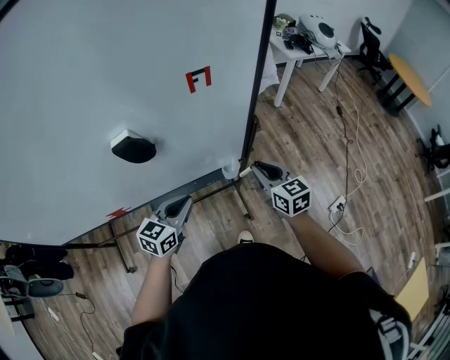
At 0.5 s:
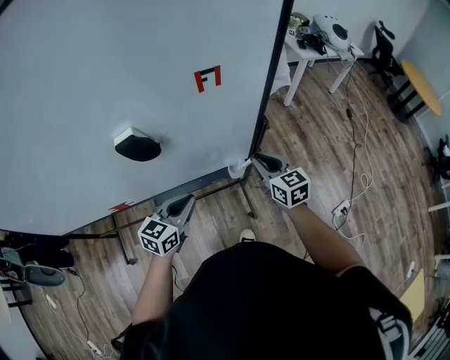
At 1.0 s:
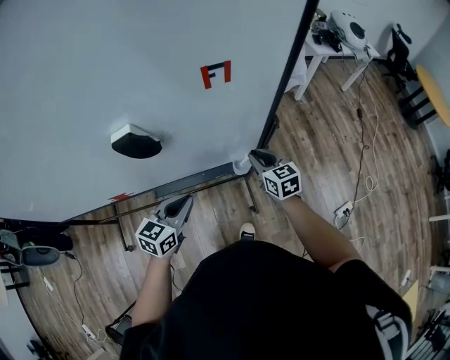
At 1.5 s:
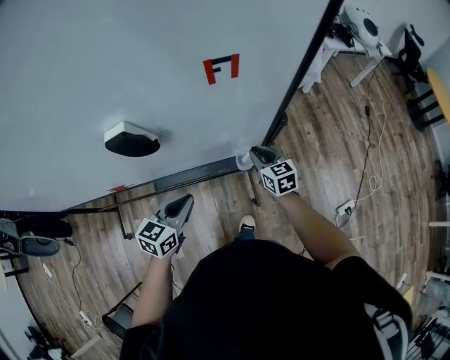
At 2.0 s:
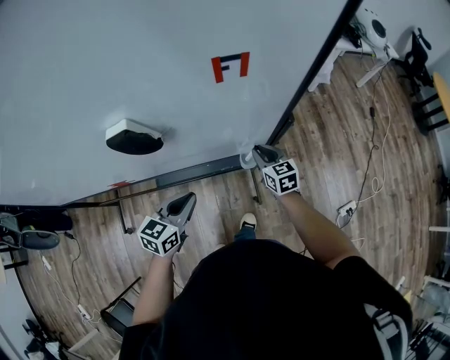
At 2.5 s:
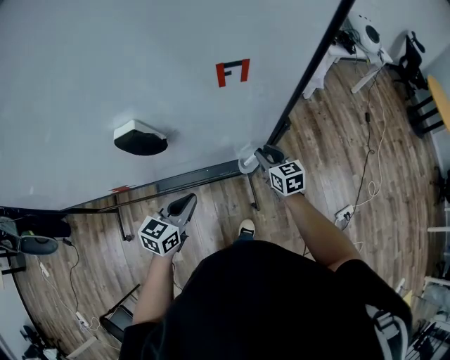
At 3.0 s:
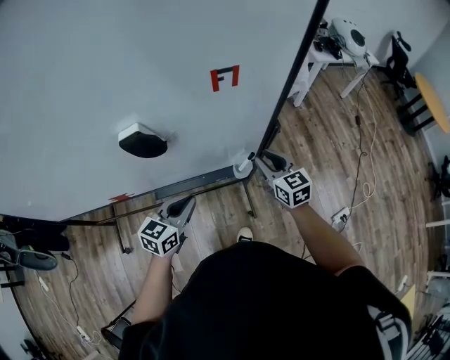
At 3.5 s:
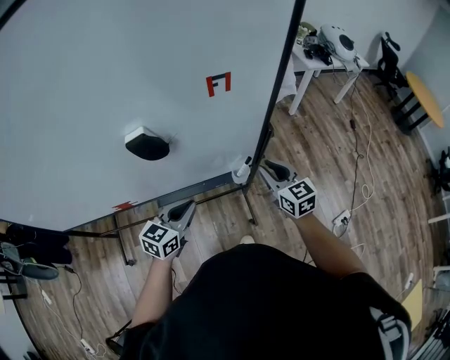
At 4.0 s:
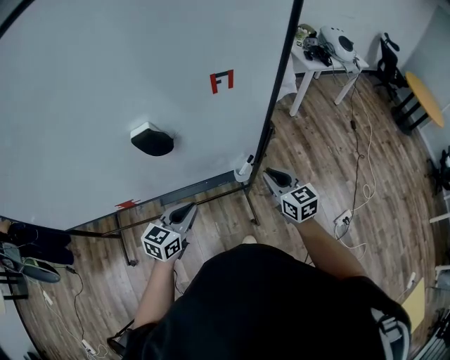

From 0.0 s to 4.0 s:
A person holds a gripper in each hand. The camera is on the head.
From 0.0 s to 2.0 s: The left gripper ends up some 5 cm from where it was, while the right gripper travels downward and forward by approximately 20 cm.
From 2.0 s to 4.0 s: The left gripper ends up about 5 cm from where it was; the right gripper heads upward and backward, covering about 20 cm.

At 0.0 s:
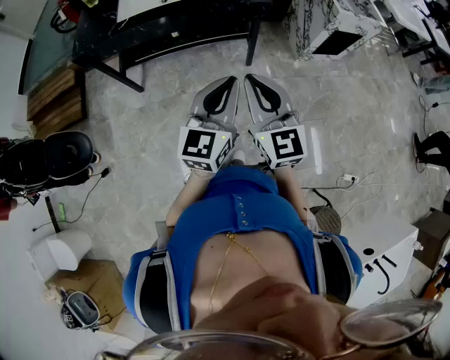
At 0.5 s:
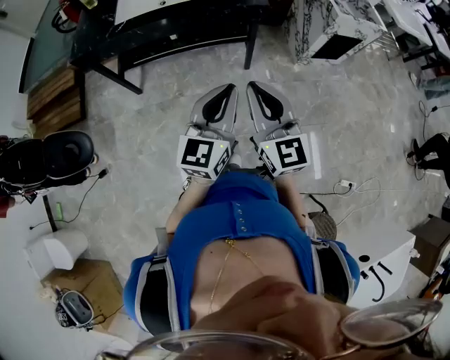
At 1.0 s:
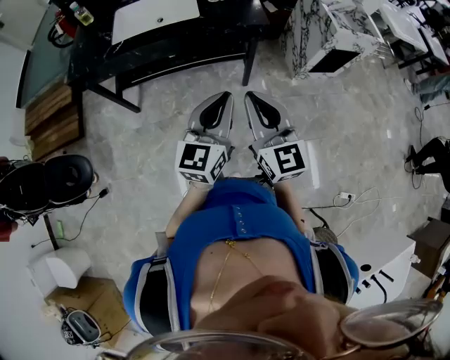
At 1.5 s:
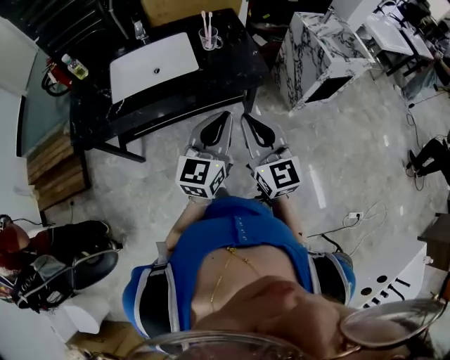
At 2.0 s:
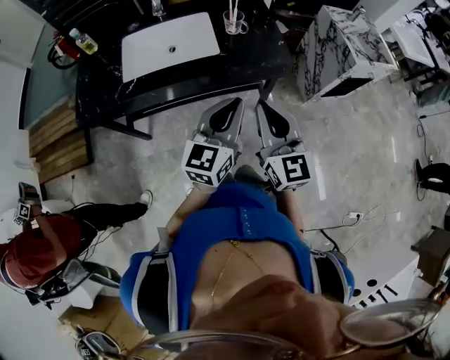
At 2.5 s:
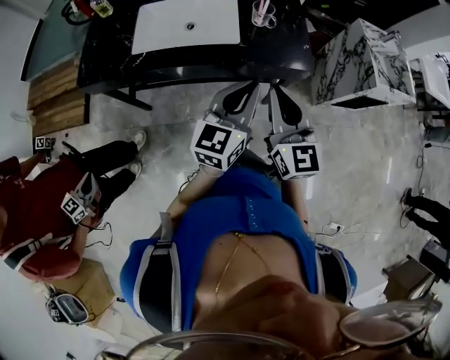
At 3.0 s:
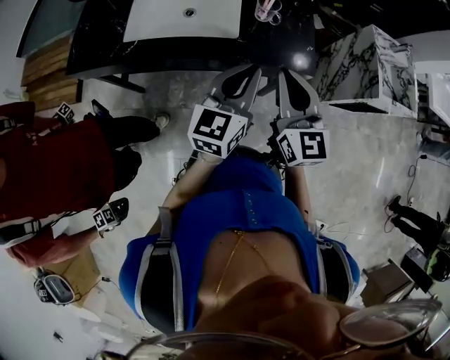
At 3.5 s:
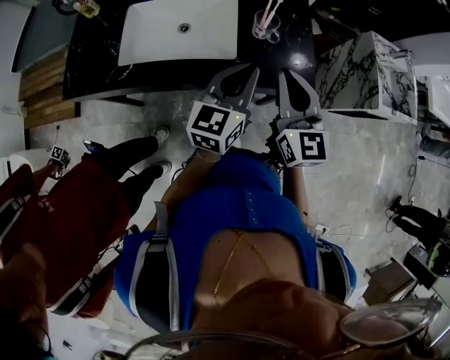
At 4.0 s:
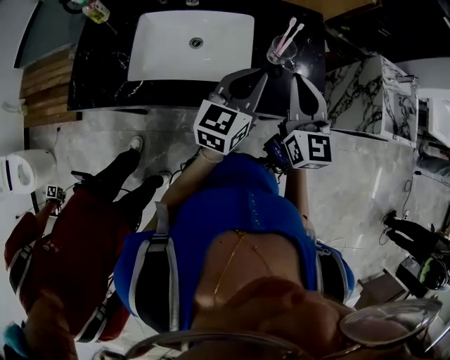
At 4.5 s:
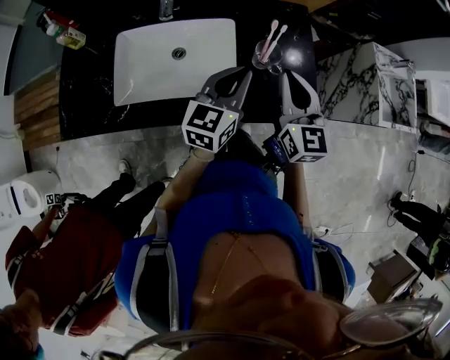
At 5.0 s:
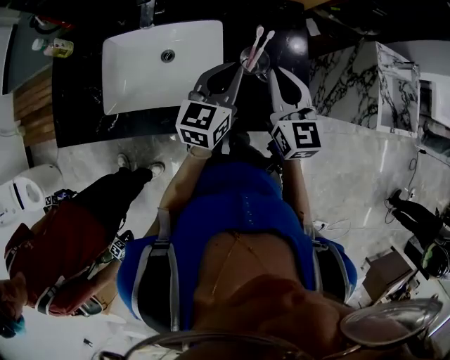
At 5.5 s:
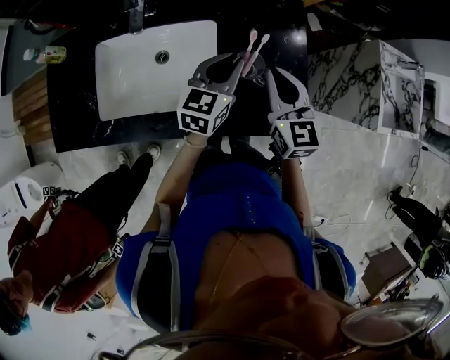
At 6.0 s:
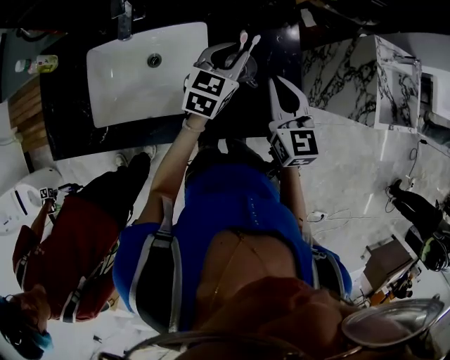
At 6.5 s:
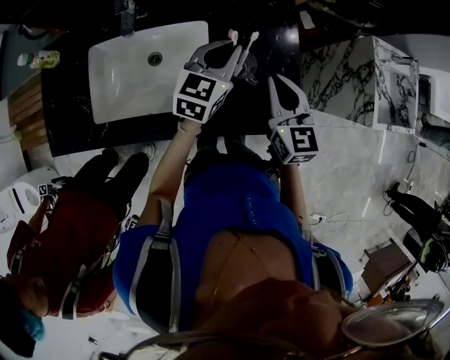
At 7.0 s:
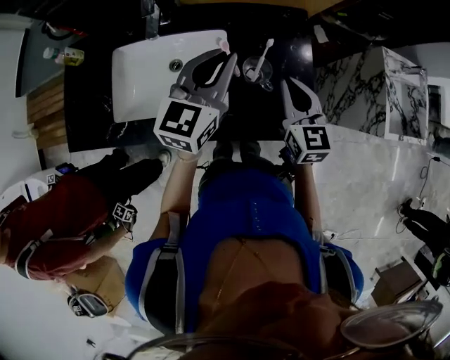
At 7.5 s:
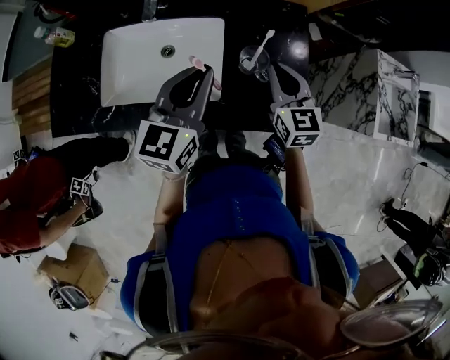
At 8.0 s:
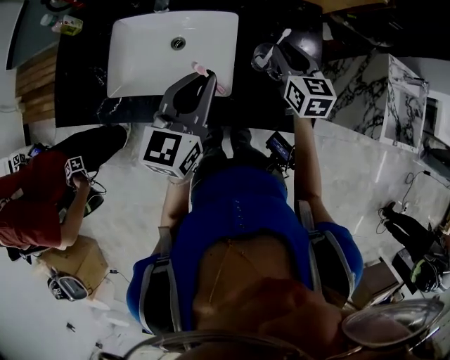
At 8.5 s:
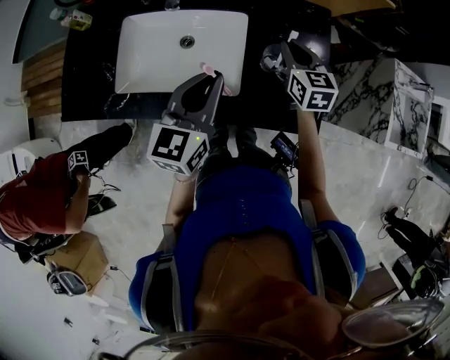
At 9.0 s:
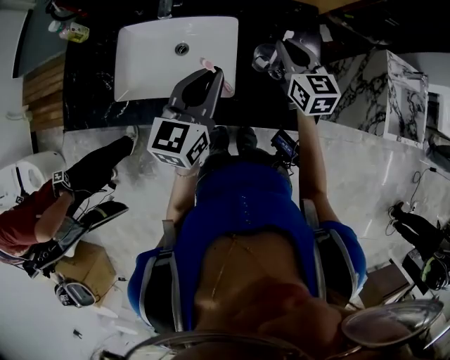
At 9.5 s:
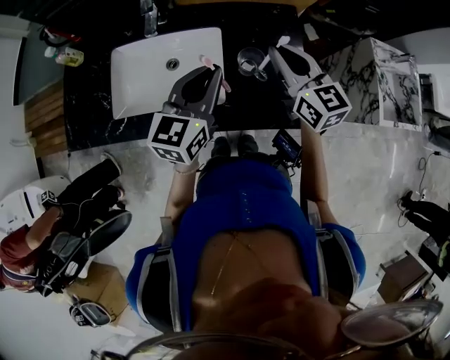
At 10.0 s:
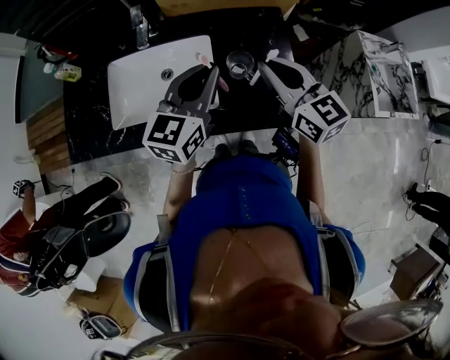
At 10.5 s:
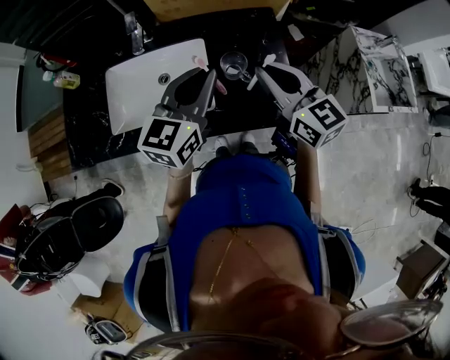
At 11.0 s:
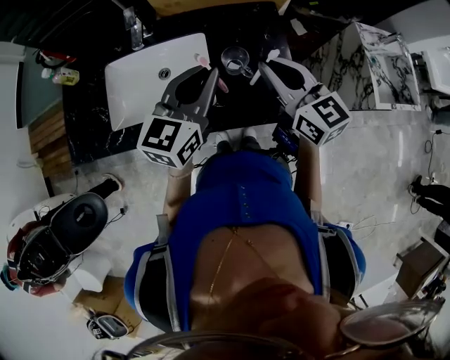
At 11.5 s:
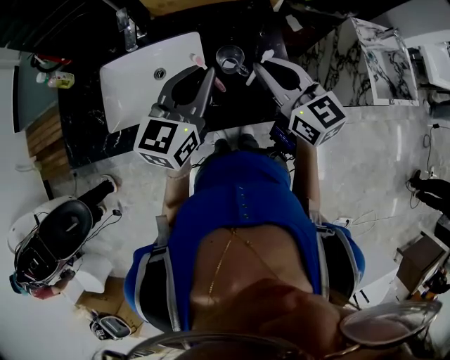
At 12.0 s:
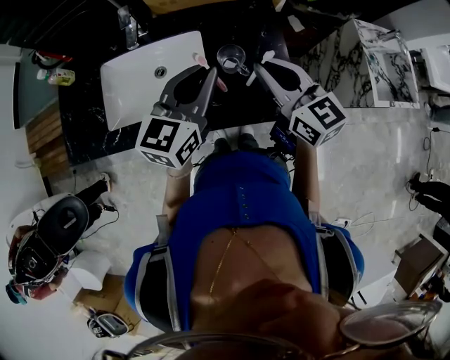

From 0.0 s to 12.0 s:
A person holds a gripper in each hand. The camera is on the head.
From 0.0 s to 2.0 s: Both grippers move forward, roughly 25 cm.
From 2.0 s to 4.0 s: Both grippers travel together forward, approximately 30 cm.
From 4.0 s to 6.0 s: The left gripper shifts roughly 25 cm forward and downward, and turns by about 20 degrees; the right gripper heads forward, downward and to the right, covering roughly 20 cm.
From 6.0 s to 8.0 s: The left gripper moves backward, to the left and upward, about 25 cm, and turns by about 20 degrees, while the right gripper is displaced forward by roughly 5 cm, and opens its fingers.
From 8.0 s to 10.0 s: The right gripper travels upward and backward by approximately 20 cm, changes its angle by about 20 degrees, and closes up, while the left gripper travels to the right and upward by some 10 cm.
From 10.0 s to 12.0 s: The grippers make only small movements.

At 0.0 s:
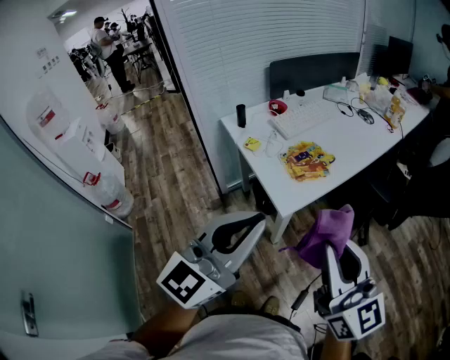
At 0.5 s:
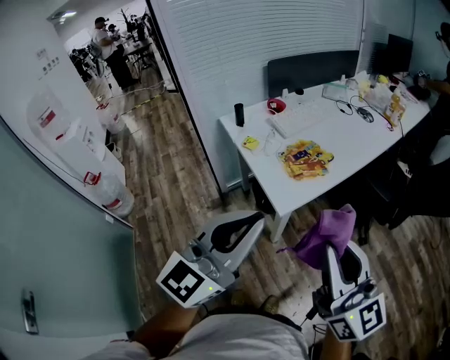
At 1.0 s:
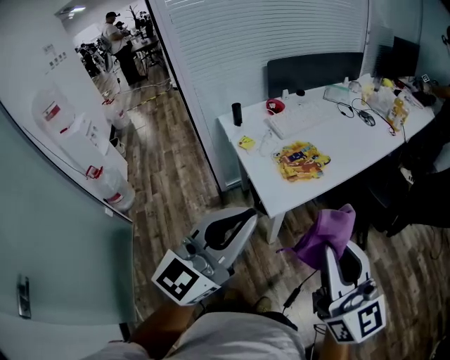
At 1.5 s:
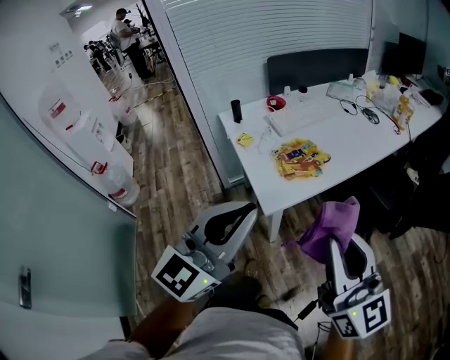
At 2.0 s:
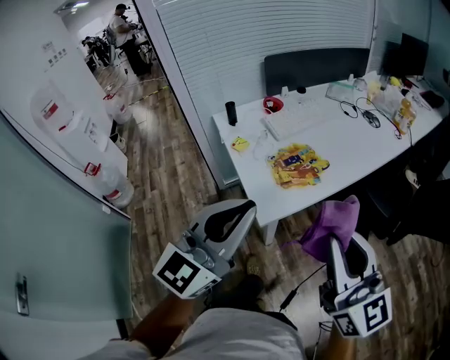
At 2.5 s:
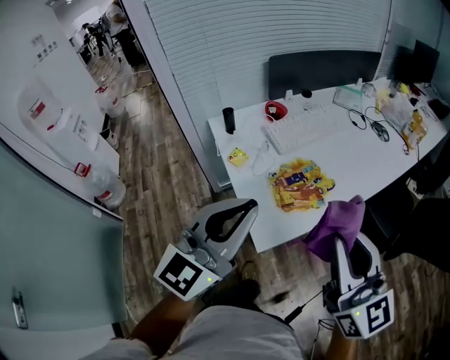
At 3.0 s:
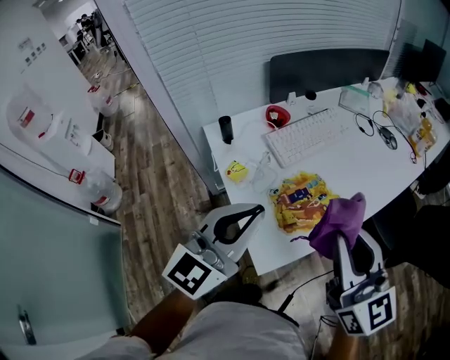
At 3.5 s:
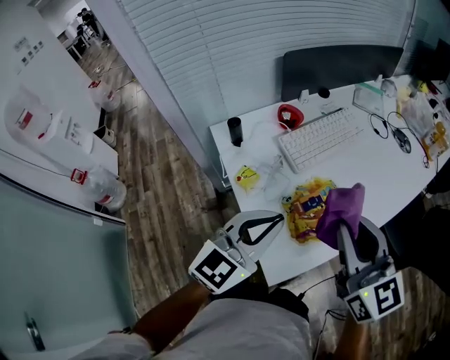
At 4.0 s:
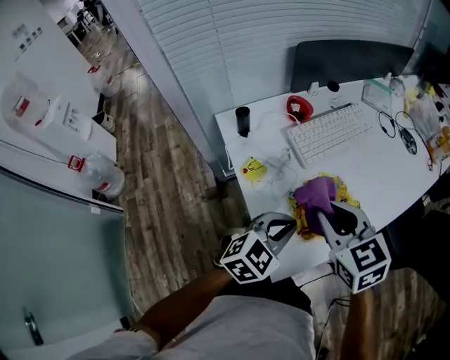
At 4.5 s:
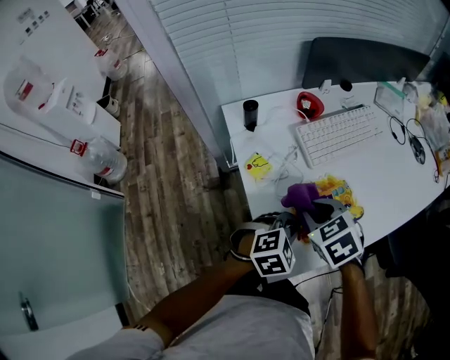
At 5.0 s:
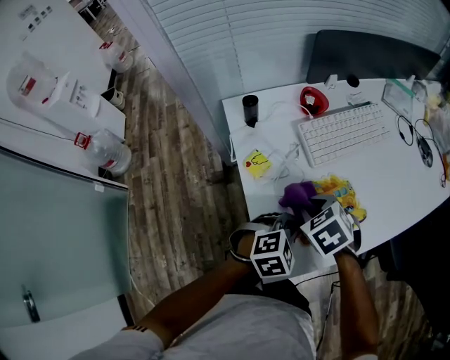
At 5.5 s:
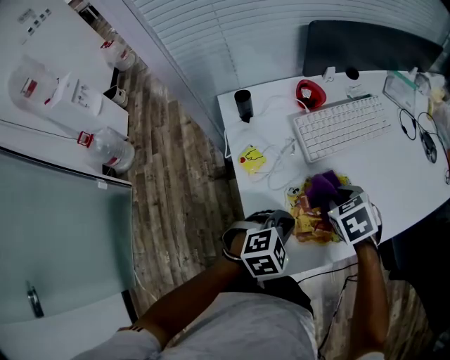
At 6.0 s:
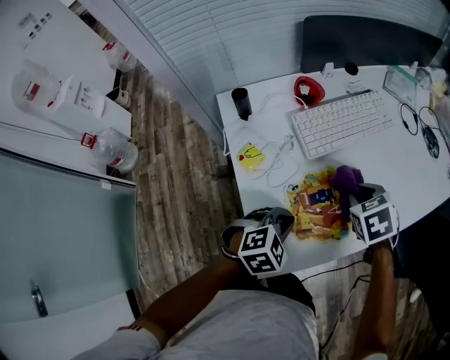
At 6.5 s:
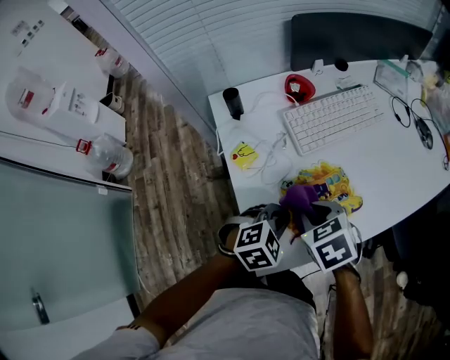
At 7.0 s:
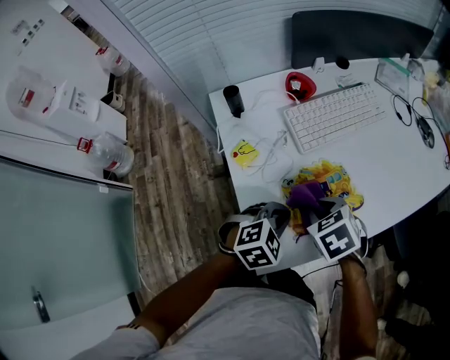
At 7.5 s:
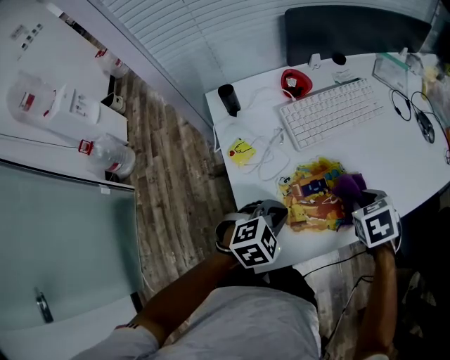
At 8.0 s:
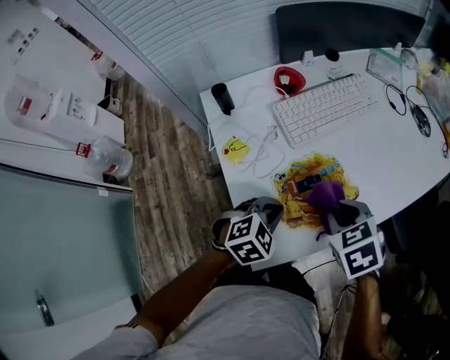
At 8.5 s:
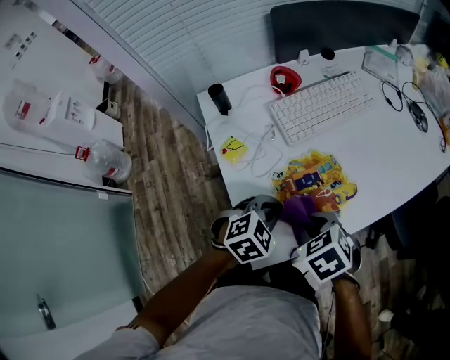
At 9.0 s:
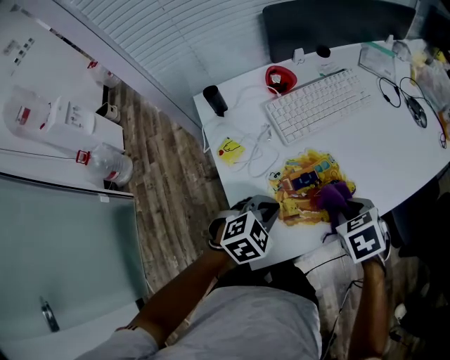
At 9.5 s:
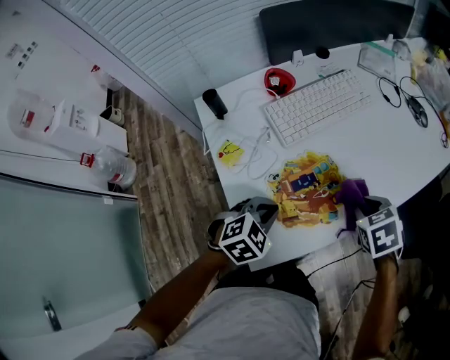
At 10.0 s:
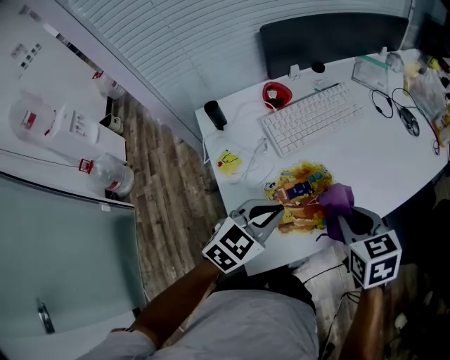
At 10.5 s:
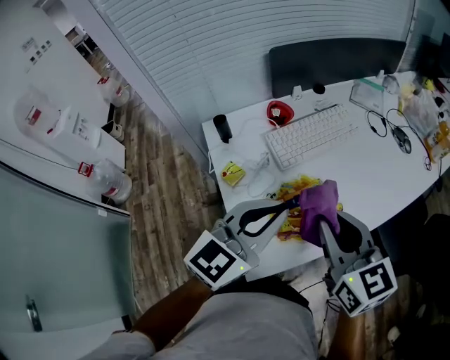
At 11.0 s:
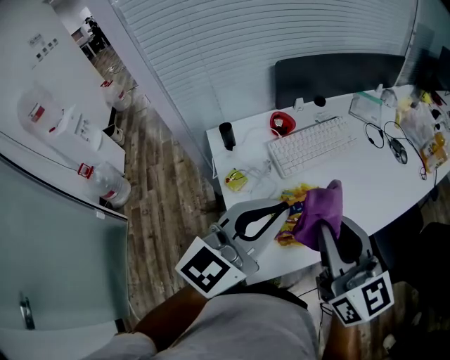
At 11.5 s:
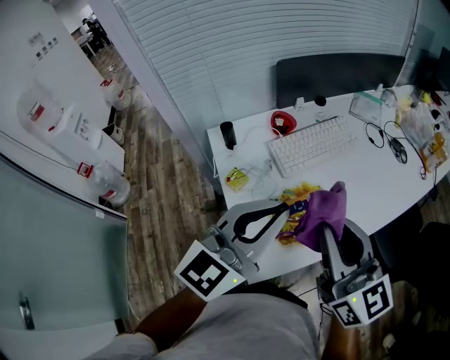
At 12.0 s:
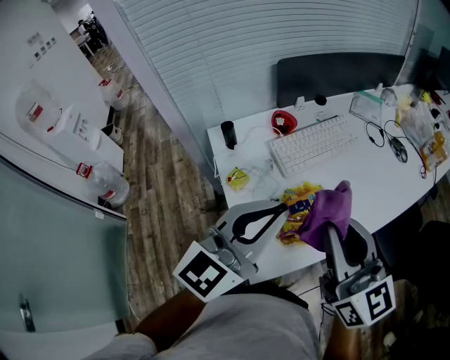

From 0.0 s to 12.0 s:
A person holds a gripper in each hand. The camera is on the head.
From 0.0 s to 2.0 s: The left gripper shifts roughly 10 cm forward and to the right. The right gripper is displaced to the right and forward by some 10 cm.
From 2.0 s to 4.0 s: The left gripper shifts approximately 35 cm forward and downward, and points its fingers some 40 degrees further downward; the right gripper shifts about 35 cm forward, downward and to the left, and tips its fingers downward by some 40 degrees.
From 4.0 s to 6.0 s: The left gripper is displaced downward by approximately 10 cm, and turns by roughly 20 degrees. The right gripper heads downward, to the right and forward, covering about 20 cm, and rotates roughly 30 degrees.
From 6.0 s to 8.0 s: The right gripper swings left and right, some 15 cm each way, with 2 reversals.
From 8.0 s to 10.0 s: The left gripper is displaced upward by about 10 cm, and turns by approximately 20 degrees. Meanwhile the right gripper goes left and right, about 15 cm each way, reversing 2 times.
From 10.0 s to 12.0 s: The left gripper moves upward, roughly 20 cm, and angles its fingers upward, by approximately 30 degrees. Meanwhile the right gripper goes roughly 20 cm upward and to the left, and tips its fingers upward by approximately 50 degrees.
